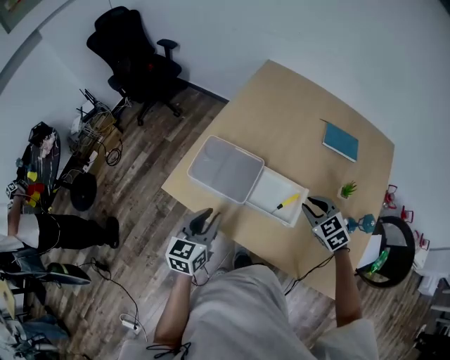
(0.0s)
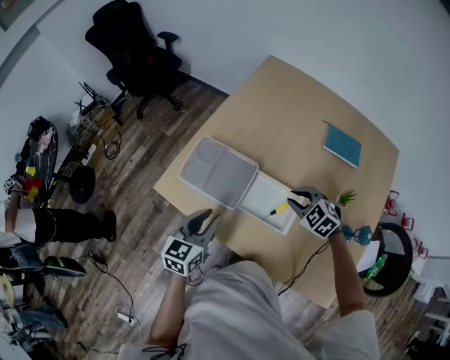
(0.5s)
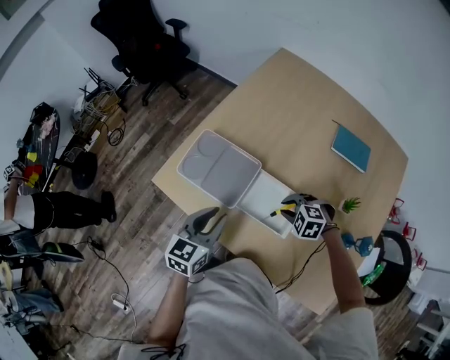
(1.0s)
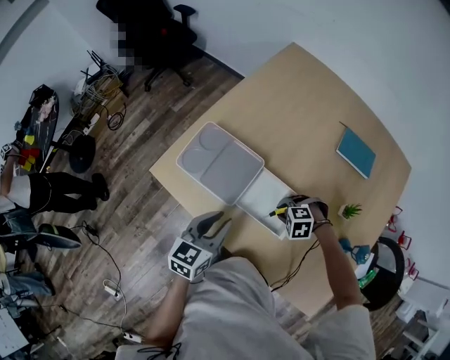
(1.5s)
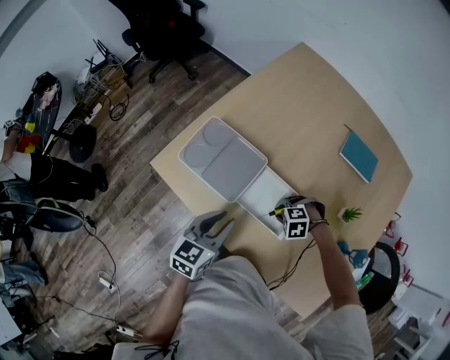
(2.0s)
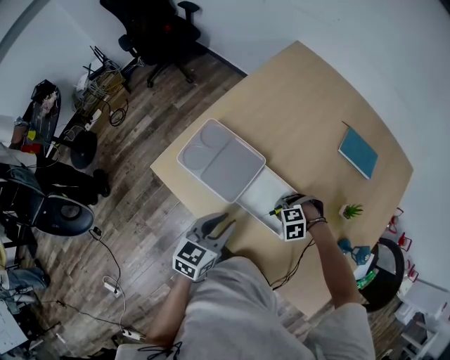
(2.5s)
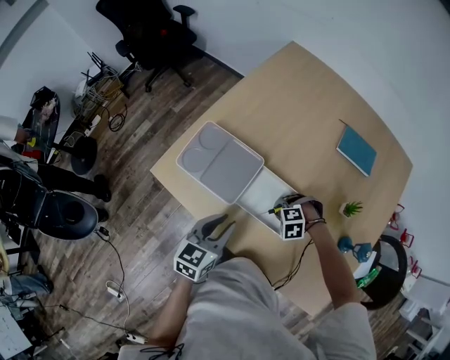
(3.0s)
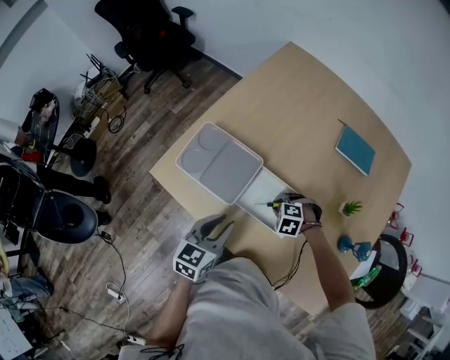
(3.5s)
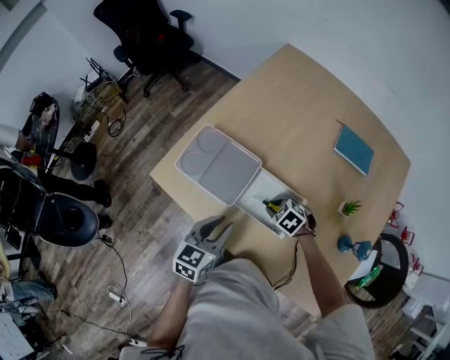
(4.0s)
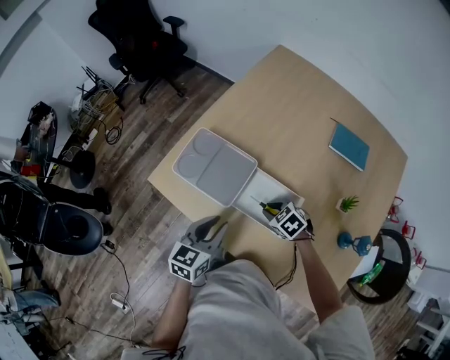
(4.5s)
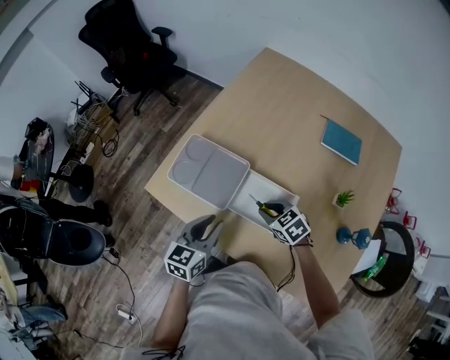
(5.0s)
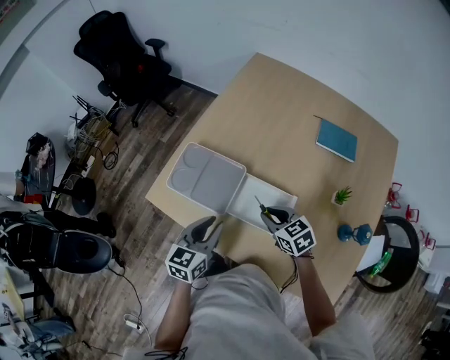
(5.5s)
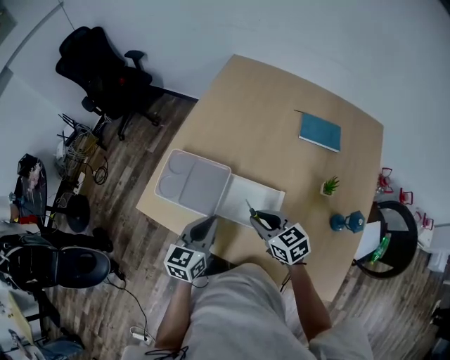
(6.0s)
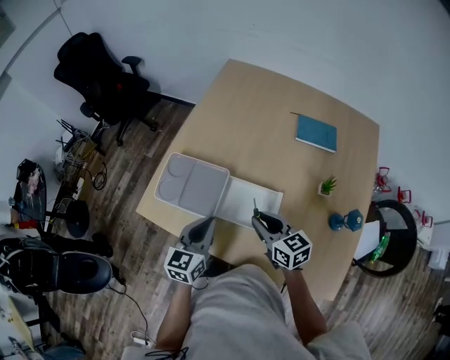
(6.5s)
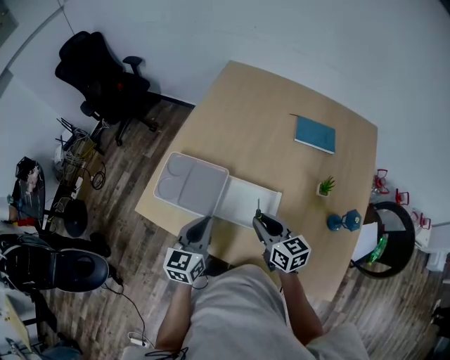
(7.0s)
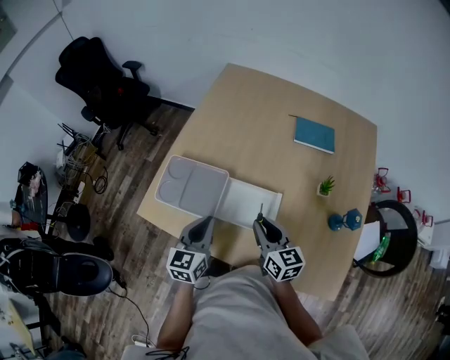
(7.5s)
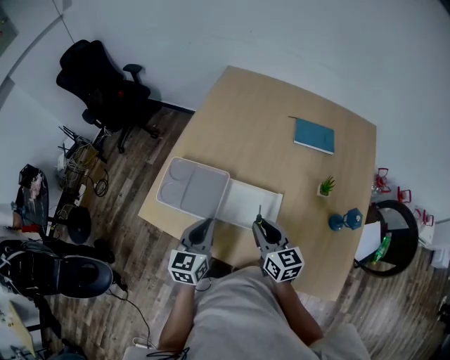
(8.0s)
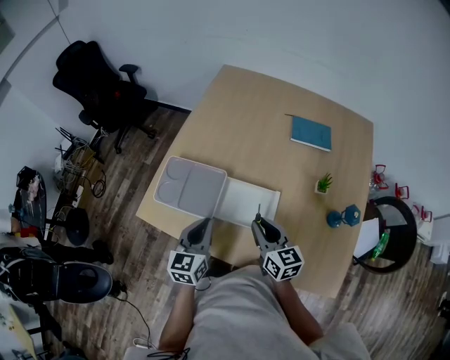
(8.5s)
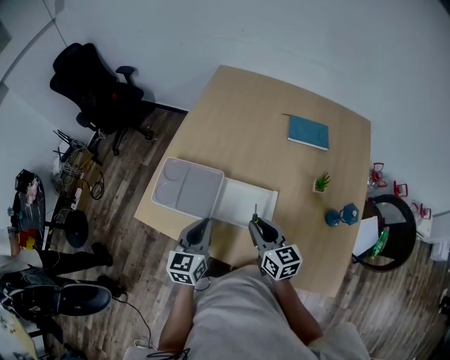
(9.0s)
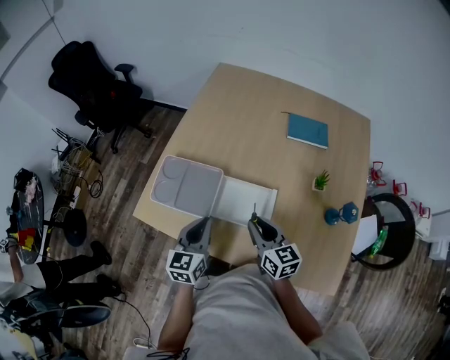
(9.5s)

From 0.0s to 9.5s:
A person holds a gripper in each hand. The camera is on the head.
From 0.0s to 2.0s: The left gripper changes place by some 10 cm. Meanwhile the right gripper moves downward, roughly 20 cm, and tips its fingers downward by approximately 30 degrees.
From 2.0s to 4.0s: The right gripper rolls clockwise, seen from behind, by about 40 degrees.
From 4.0s to 5.5s: The right gripper goes roughly 10 cm upward, and changes its angle by about 40 degrees.
From 5.5s to 7.5s: The right gripper moves upward, approximately 5 cm, and turns by approximately 40 degrees. The left gripper closes.
From 7.5s to 9.5s: The grippers stay close to where they were, moving slightly.

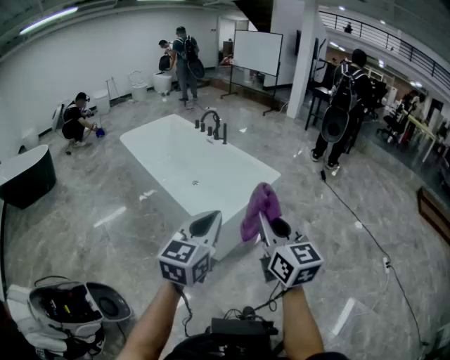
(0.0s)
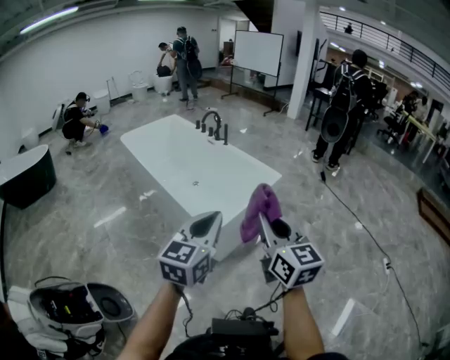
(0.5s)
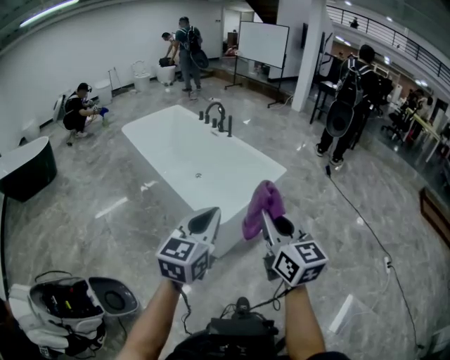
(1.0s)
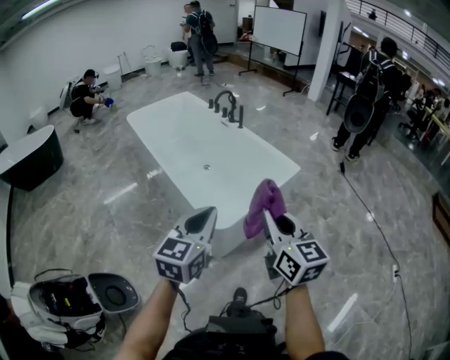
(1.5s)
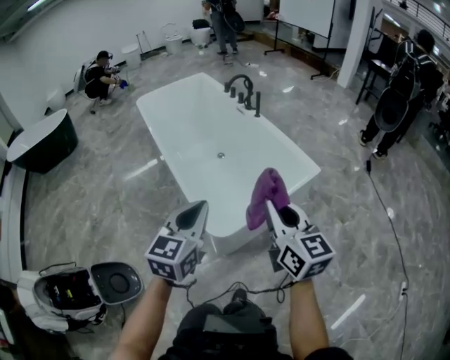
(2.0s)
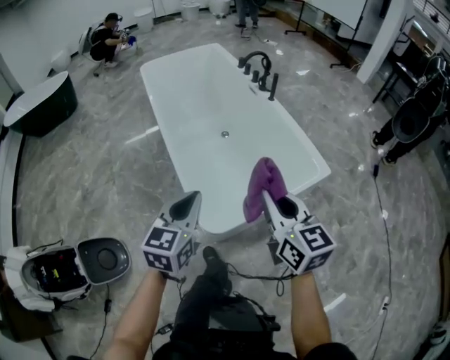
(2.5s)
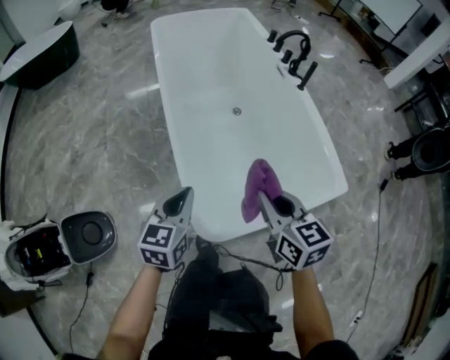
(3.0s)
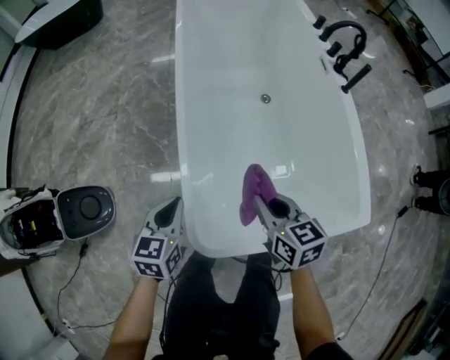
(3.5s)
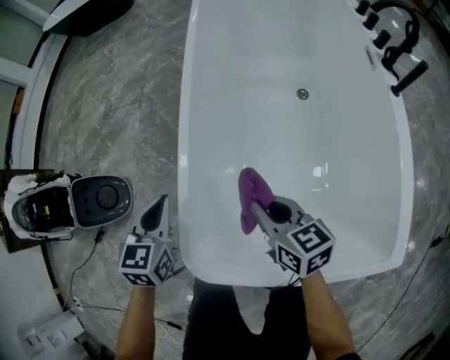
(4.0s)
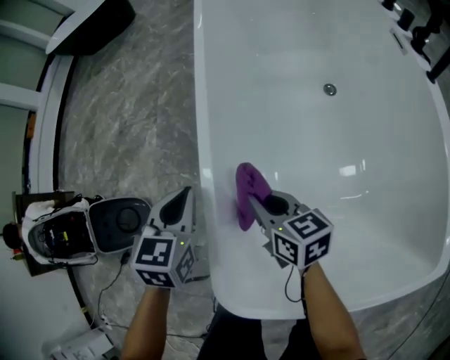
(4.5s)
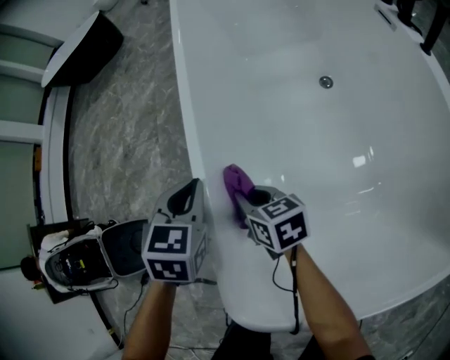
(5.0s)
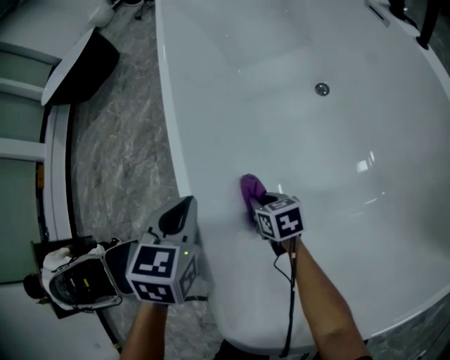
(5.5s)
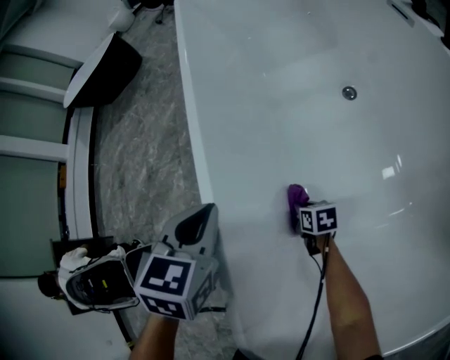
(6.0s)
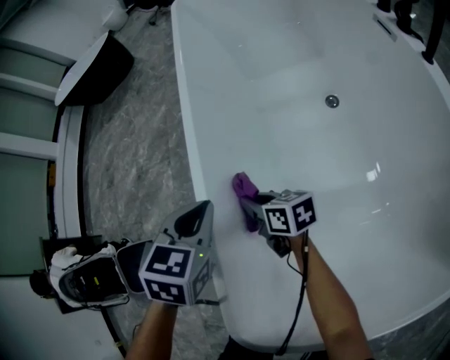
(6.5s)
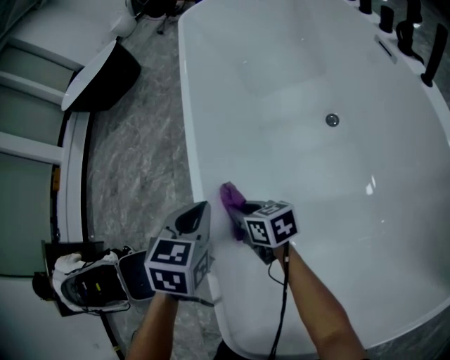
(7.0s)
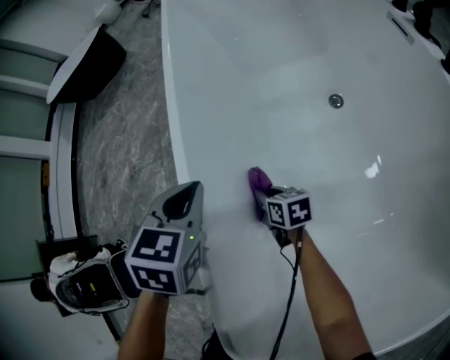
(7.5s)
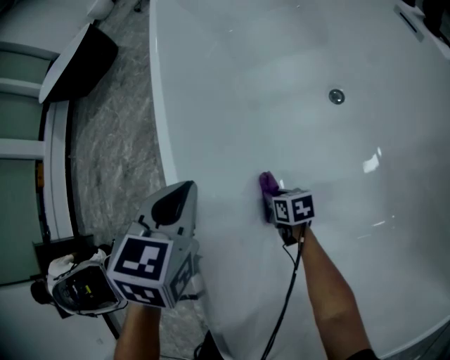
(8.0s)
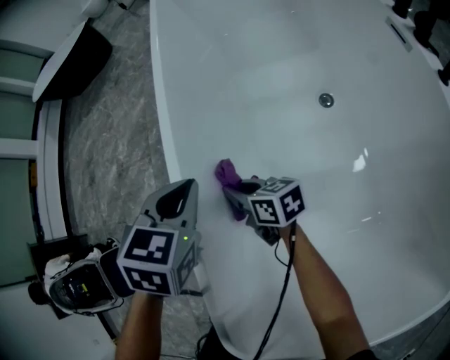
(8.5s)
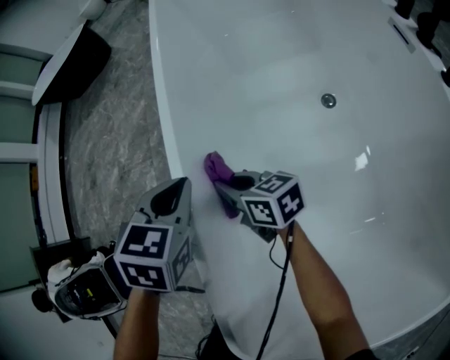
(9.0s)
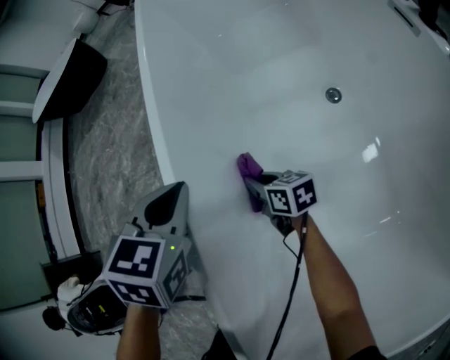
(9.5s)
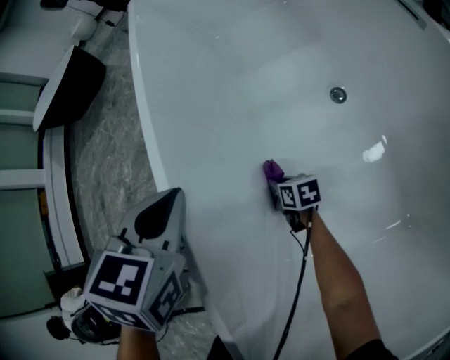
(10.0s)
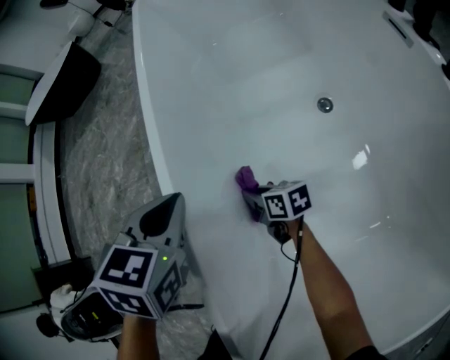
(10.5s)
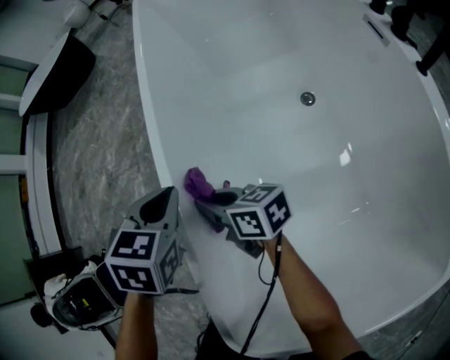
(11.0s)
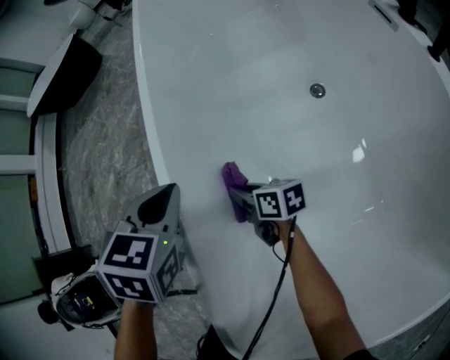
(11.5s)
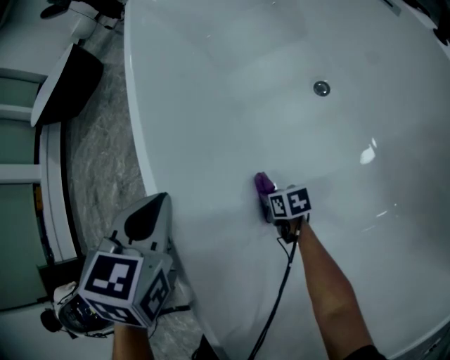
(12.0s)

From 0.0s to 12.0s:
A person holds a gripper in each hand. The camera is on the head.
From 0.0s to 2.0s: The grippers both shift forward by approximately 25 cm.
From 2.0s to 4.0s: The two grippers go about 35 cm downward. The right gripper swivels approximately 60 degrees. Meanwhile the left gripper swivels roughly 60 degrees.
From 4.0s to 6.0s: The left gripper goes roughly 20 cm forward, to the right and downward, and rotates roughly 30 degrees. The right gripper moves downward and forward, approximately 40 cm, and turns by some 30 degrees.
From 6.0s to 8.0s: The right gripper is displaced forward by approximately 10 cm, and moves about 25 cm upward and comes back; the left gripper heads forward and to the right, covering roughly 10 cm.
From 8.0s to 10.0s: The two grippers go roughly 5 cm forward. The right gripper travels upward and back again, roughly 25 cm each way.
From 10.0s to 12.0s: Both grippers move backward, roughly 5 cm. The right gripper goes upward and returns, about 30 cm each way.

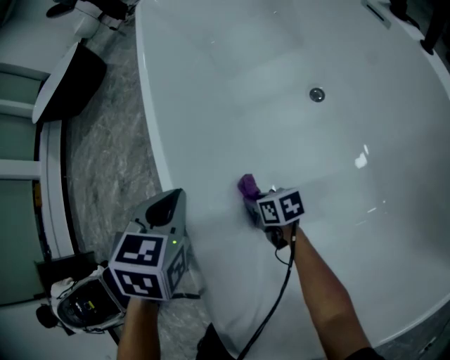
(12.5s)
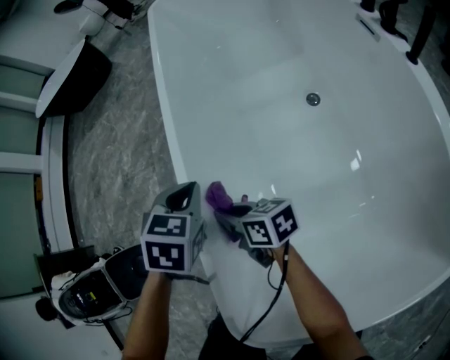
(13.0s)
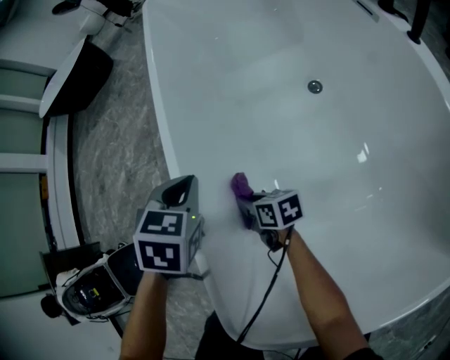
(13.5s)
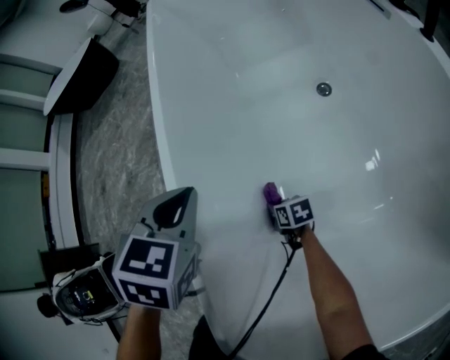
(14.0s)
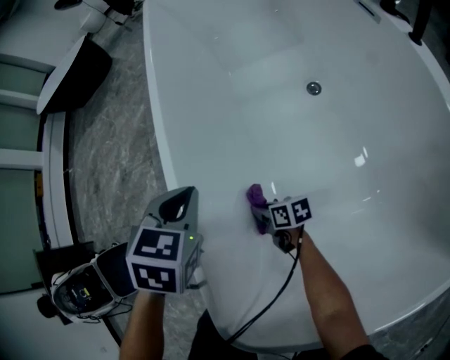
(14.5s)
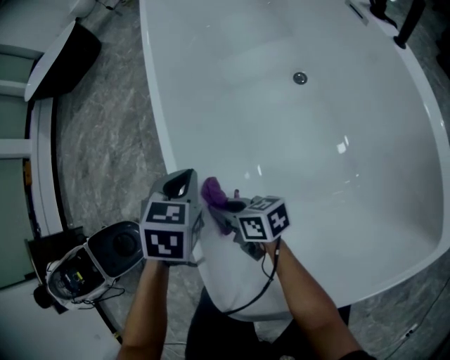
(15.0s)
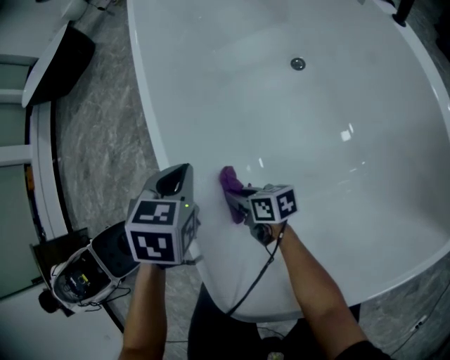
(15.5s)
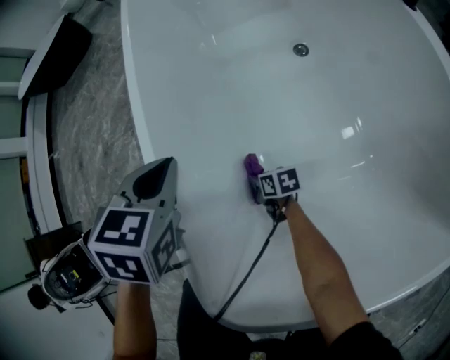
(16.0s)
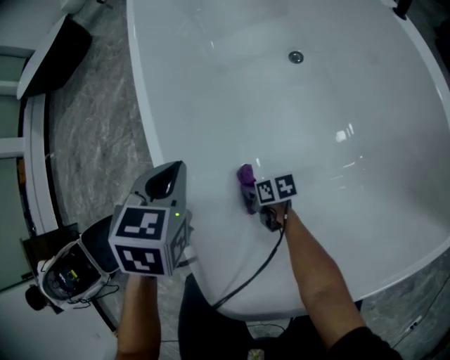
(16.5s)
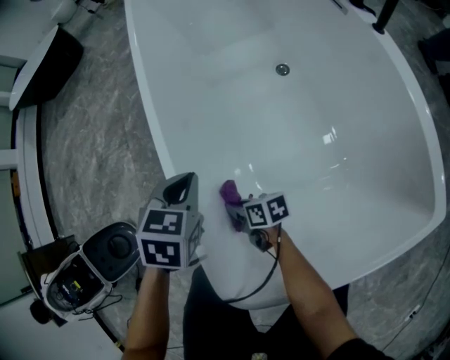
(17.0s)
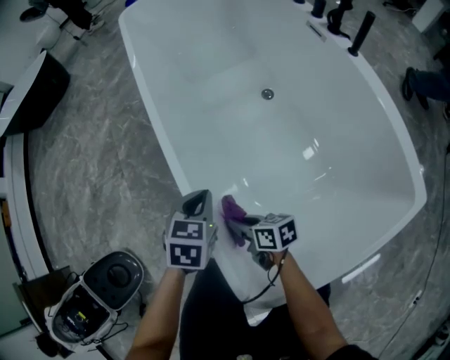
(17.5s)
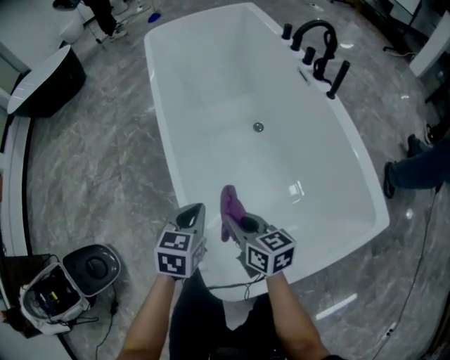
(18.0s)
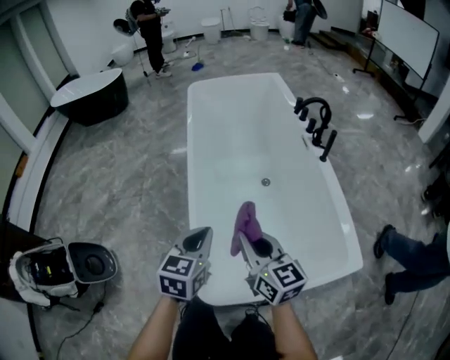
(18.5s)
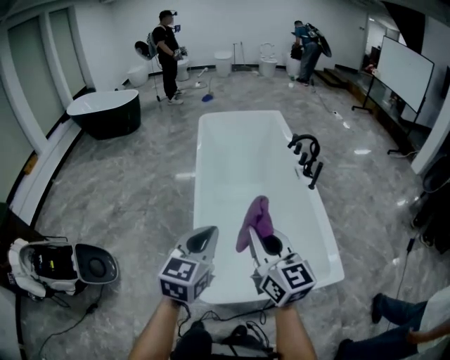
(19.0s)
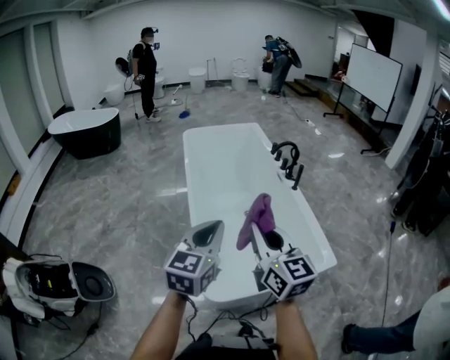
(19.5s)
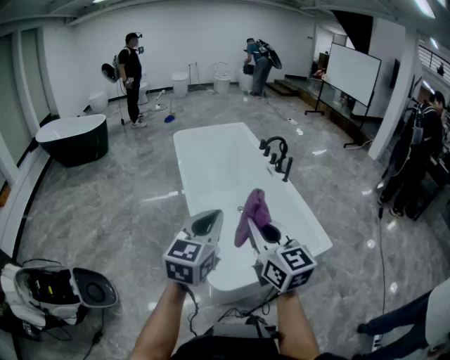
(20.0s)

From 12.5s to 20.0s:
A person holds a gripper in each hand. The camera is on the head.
From 12.5s to 14.5s: The right gripper swings up and down, approximately 30 cm each way, with 2 reversals. The left gripper travels backward by some 5 cm.
From 14.5s to 16.5s: The right gripper goes up and down, roughly 25 cm each way, reversing 2 times.
From 16.5s to 18.0s: The left gripper travels upward by approximately 5 cm, and changes its angle by some 20 degrees, while the right gripper is displaced upward by roughly 35 cm, and turns by roughly 40 degrees.
From 18.0s to 20.0s: The two grippers go roughly 50 cm upward and backward. The left gripper tips its fingers upward by some 40 degrees. Meanwhile the right gripper turns by about 40 degrees.
